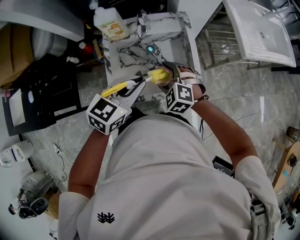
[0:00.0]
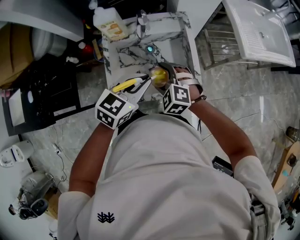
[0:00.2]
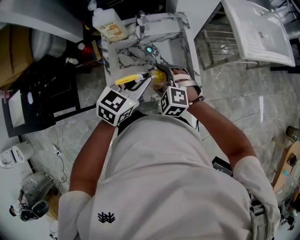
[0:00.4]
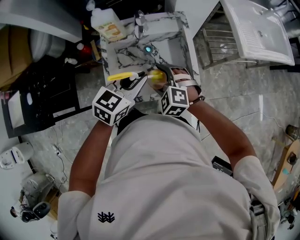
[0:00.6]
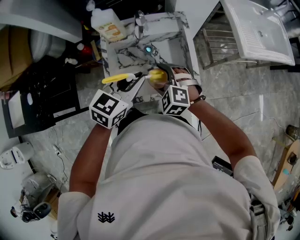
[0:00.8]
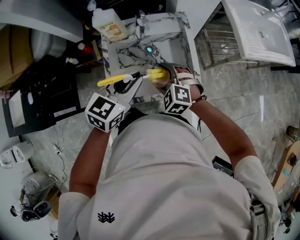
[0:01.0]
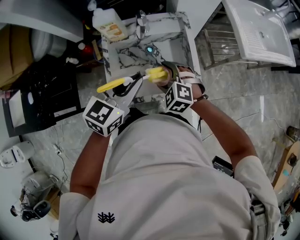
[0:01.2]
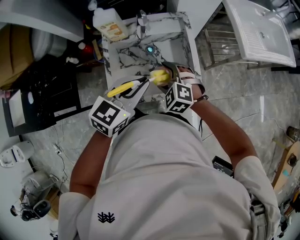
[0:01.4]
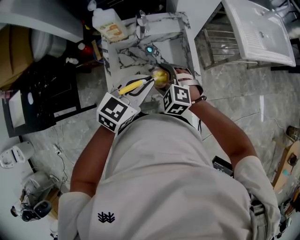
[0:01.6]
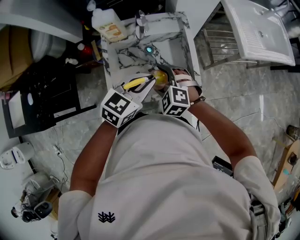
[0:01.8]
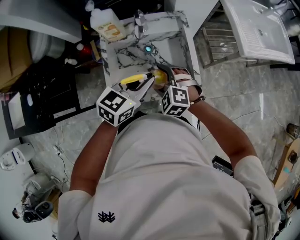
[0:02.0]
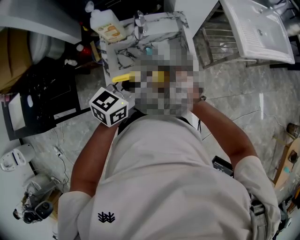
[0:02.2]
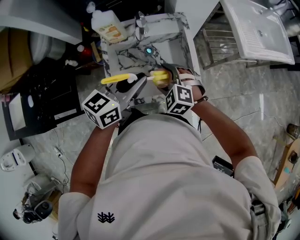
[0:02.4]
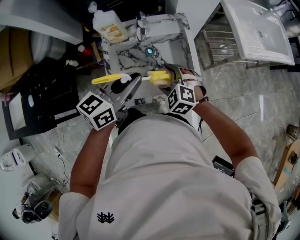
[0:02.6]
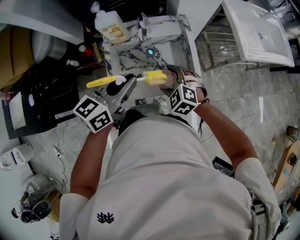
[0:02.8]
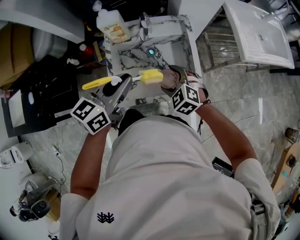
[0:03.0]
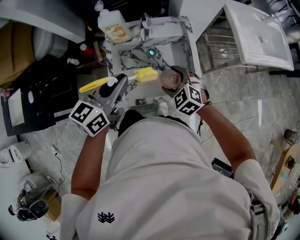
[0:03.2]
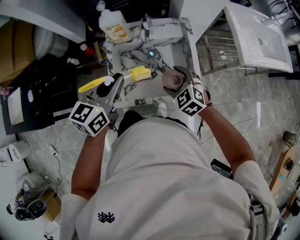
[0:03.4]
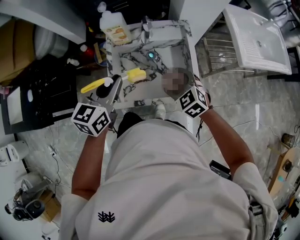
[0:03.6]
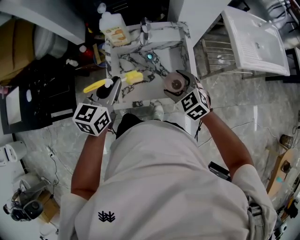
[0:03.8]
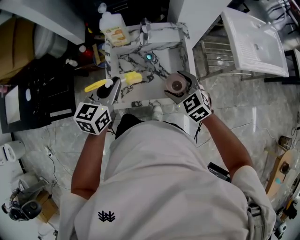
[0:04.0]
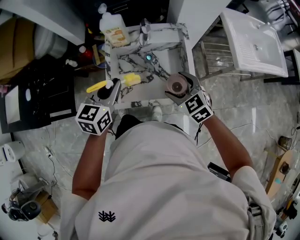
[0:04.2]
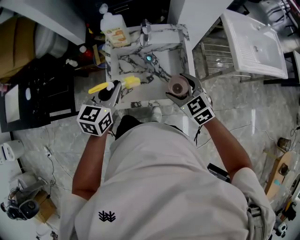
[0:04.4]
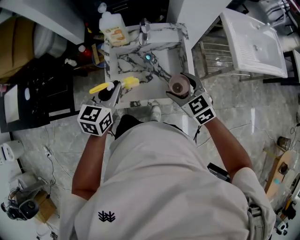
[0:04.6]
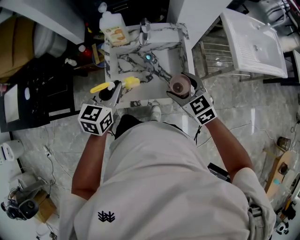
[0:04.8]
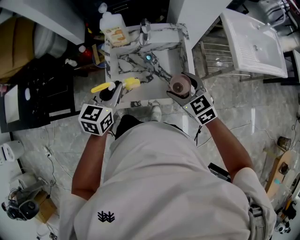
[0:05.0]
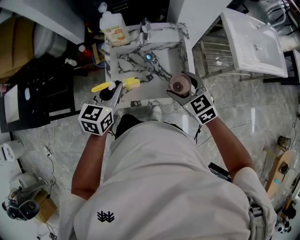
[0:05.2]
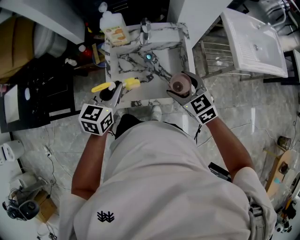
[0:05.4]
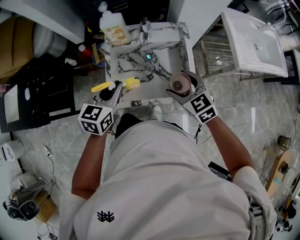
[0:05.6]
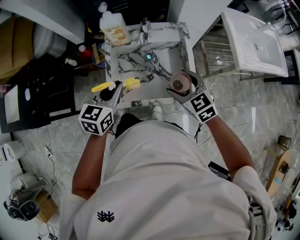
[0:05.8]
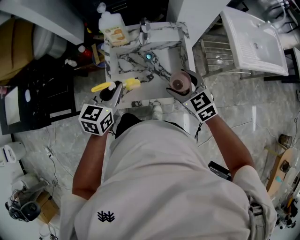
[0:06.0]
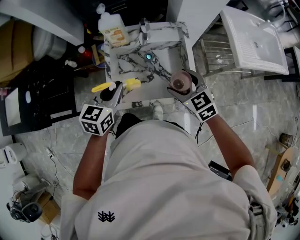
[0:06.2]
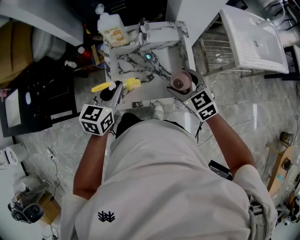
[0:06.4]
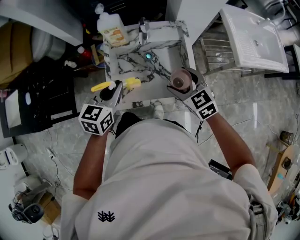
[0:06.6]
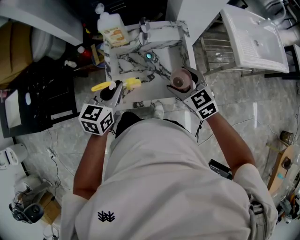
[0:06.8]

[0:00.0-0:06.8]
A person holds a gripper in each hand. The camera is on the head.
0:00.0 to 0:01.4: There are only small adjustments of the grippers.
0:01.4 to 0:02.8: The left gripper shifts about 5 cm to the left, and changes its angle by some 20 degrees.
0:02.8 to 0:04.0: The right gripper changes place by some 5 cm. The left gripper heads to the left, covering approximately 5 cm, and rotates approximately 20 degrees.
0:04.0 to 0:06.8: The grippers stay close to where they were, moving slightly.

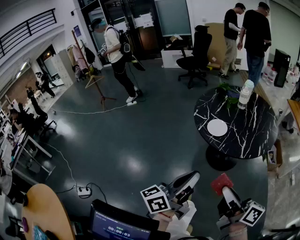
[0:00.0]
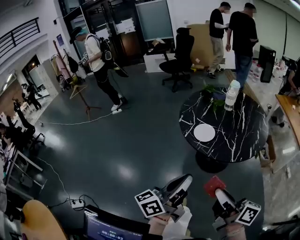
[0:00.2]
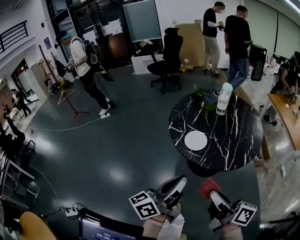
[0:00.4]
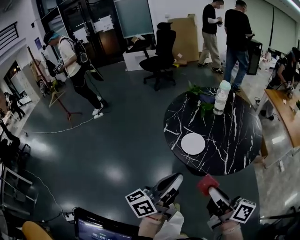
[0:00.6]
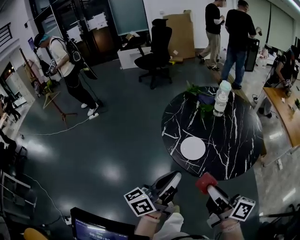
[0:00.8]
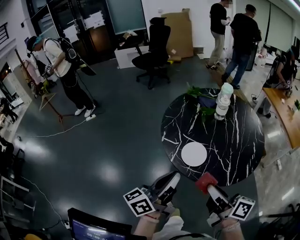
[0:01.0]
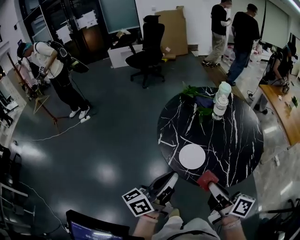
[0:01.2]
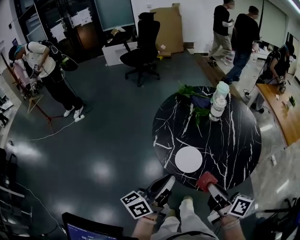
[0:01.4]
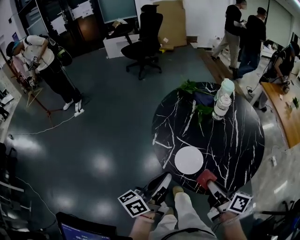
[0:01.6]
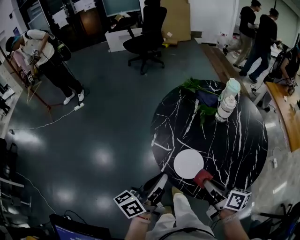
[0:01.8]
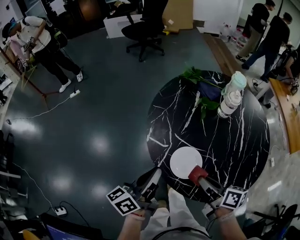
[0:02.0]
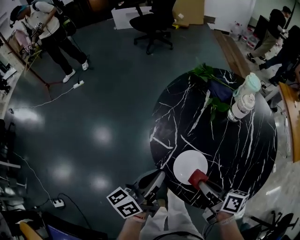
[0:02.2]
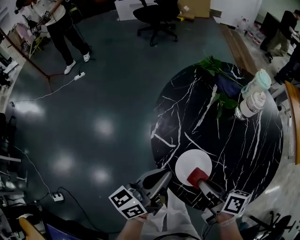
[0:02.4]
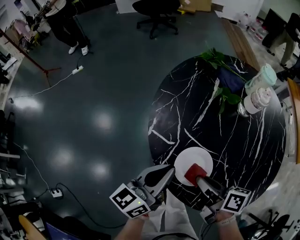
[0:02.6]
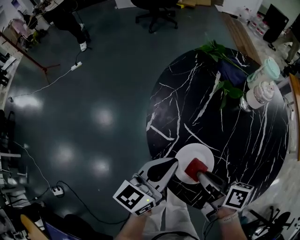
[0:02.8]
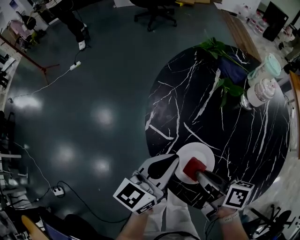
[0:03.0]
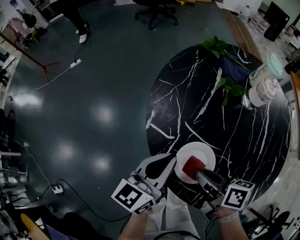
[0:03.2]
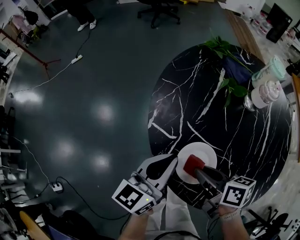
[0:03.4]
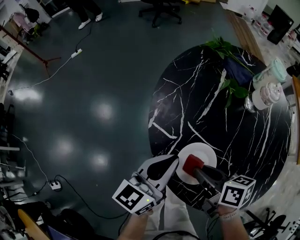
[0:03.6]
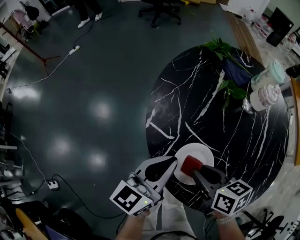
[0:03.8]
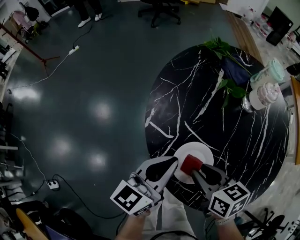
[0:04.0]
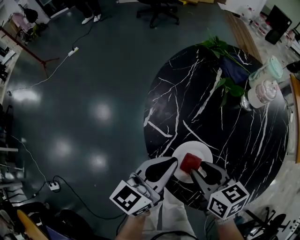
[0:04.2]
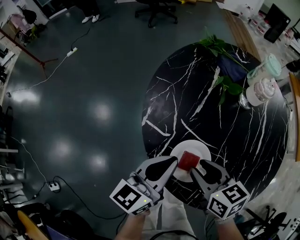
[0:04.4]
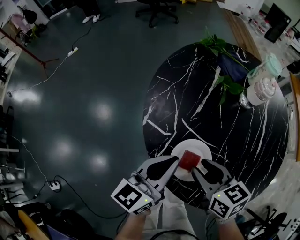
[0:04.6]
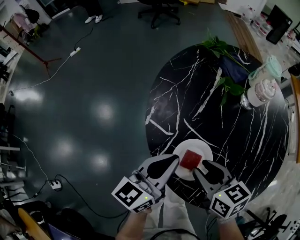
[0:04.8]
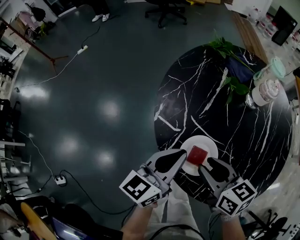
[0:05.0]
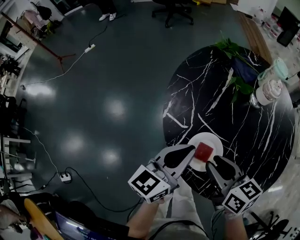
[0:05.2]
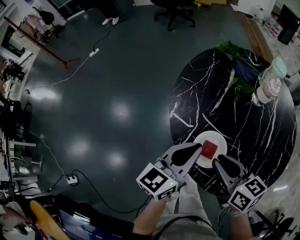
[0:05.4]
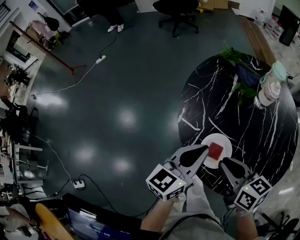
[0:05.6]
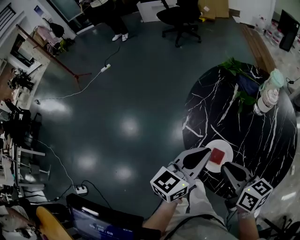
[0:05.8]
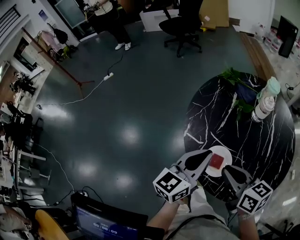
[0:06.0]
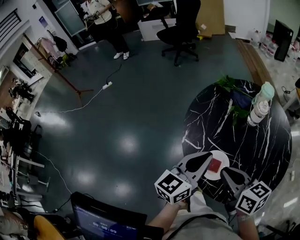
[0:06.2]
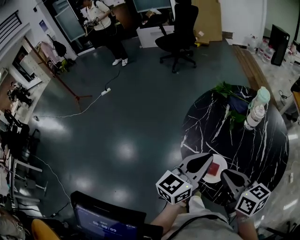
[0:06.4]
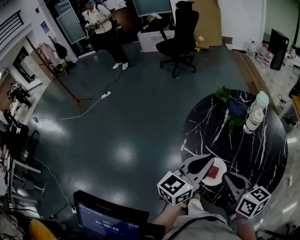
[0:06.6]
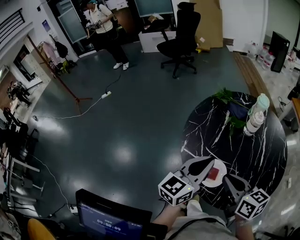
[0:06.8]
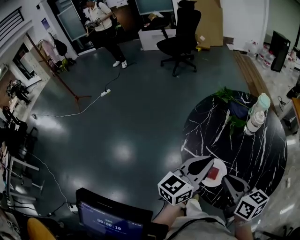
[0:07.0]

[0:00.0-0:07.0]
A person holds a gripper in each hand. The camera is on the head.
0:00.0 to 0:01.4: Both grippers travel together forward, approximately 35 cm. The right gripper changes its angle by about 20 degrees.
0:01.4 to 0:02.8: The two grippers go about 20 cm downward and forward. The left gripper changes its angle by about 30 degrees. The right gripper turns by roughly 30 degrees.
0:02.8 to 0:04.2: The right gripper turns by approximately 40 degrees.
0:04.2 to 0:05.6: Both grippers travel together upward, roughly 10 cm.
0:05.6 to 0:07.0: The grippers both shift upward by roughly 5 cm.

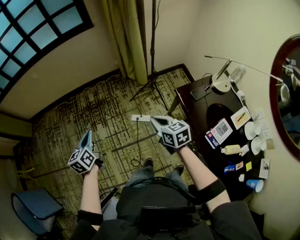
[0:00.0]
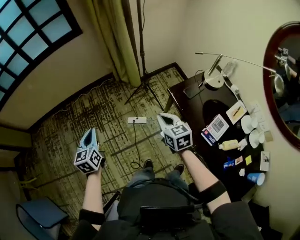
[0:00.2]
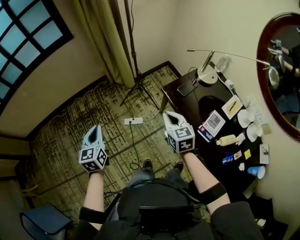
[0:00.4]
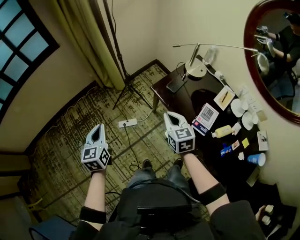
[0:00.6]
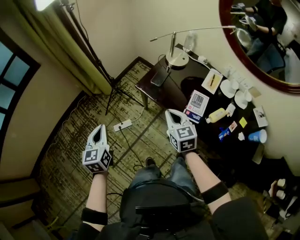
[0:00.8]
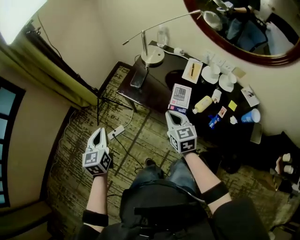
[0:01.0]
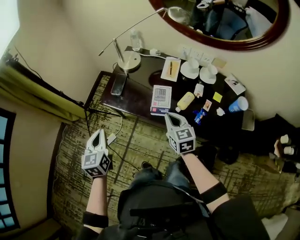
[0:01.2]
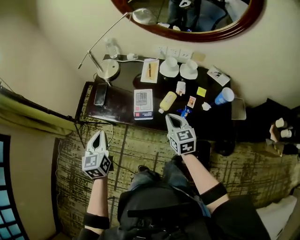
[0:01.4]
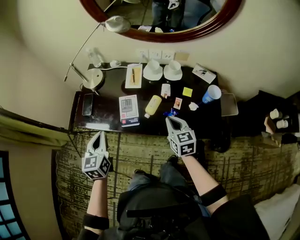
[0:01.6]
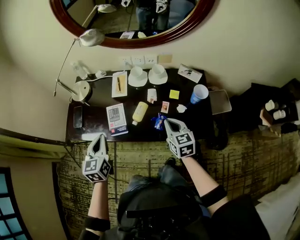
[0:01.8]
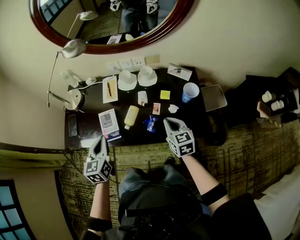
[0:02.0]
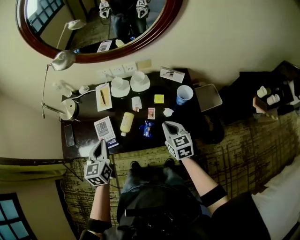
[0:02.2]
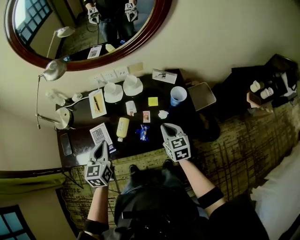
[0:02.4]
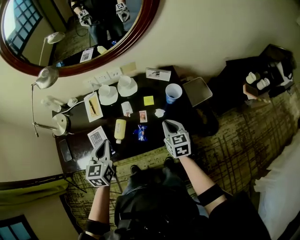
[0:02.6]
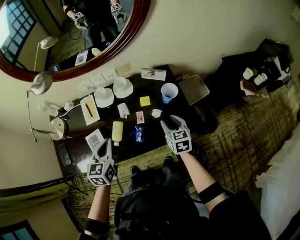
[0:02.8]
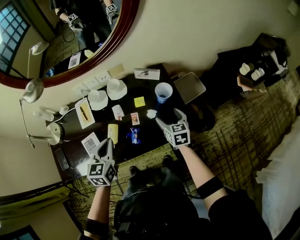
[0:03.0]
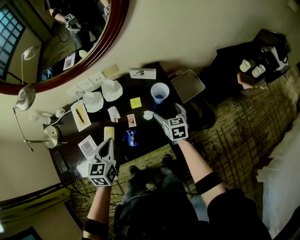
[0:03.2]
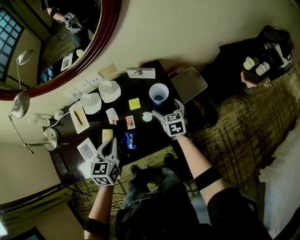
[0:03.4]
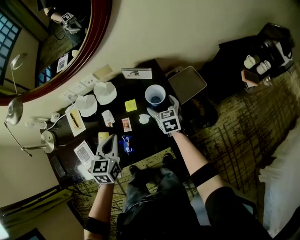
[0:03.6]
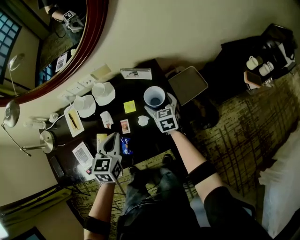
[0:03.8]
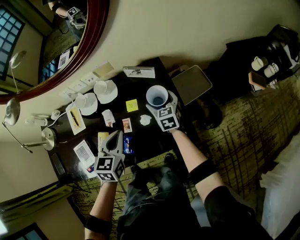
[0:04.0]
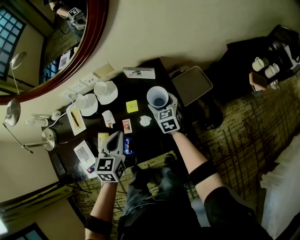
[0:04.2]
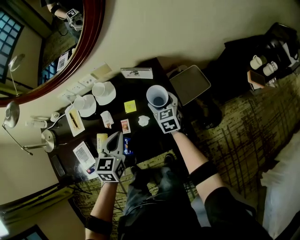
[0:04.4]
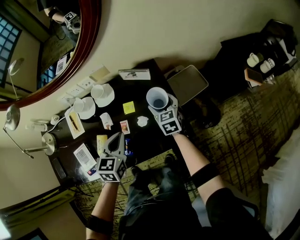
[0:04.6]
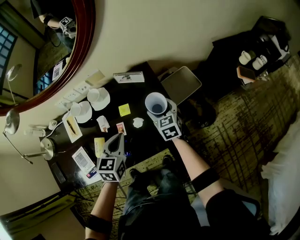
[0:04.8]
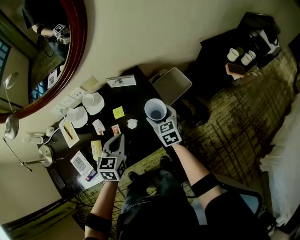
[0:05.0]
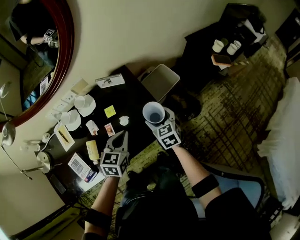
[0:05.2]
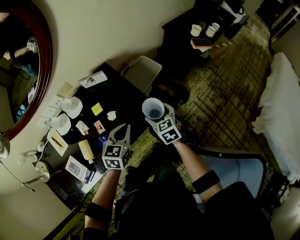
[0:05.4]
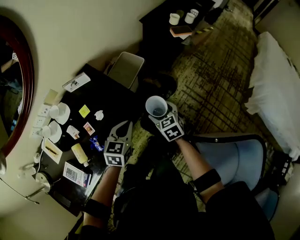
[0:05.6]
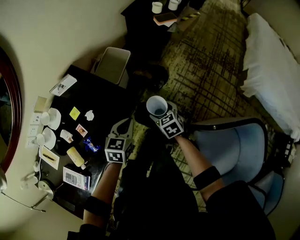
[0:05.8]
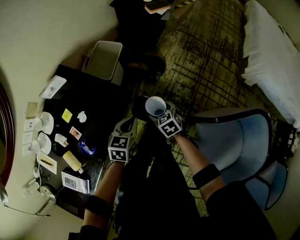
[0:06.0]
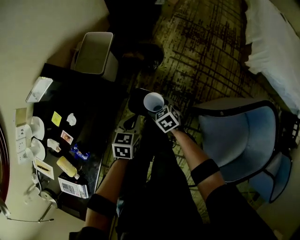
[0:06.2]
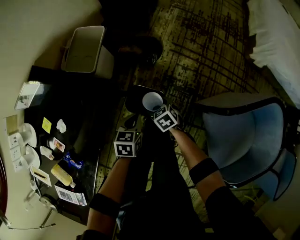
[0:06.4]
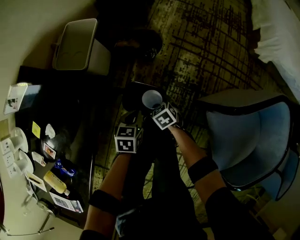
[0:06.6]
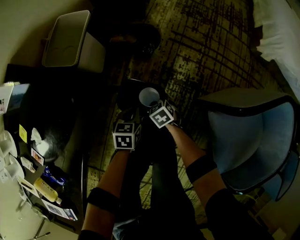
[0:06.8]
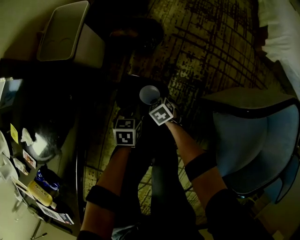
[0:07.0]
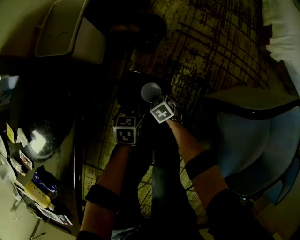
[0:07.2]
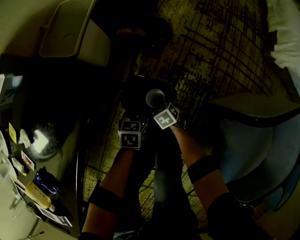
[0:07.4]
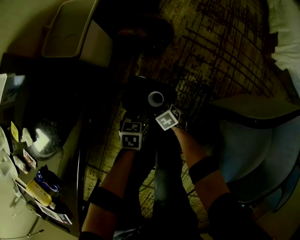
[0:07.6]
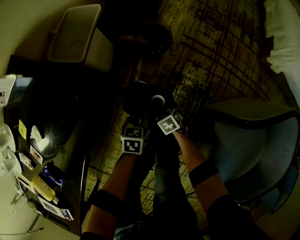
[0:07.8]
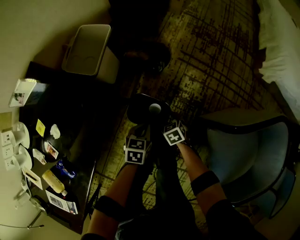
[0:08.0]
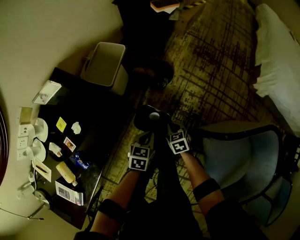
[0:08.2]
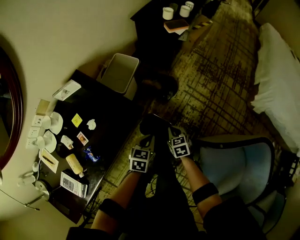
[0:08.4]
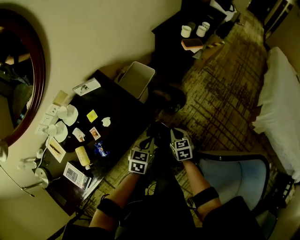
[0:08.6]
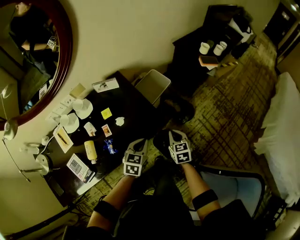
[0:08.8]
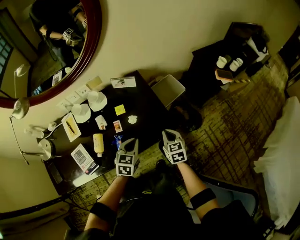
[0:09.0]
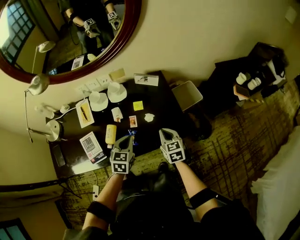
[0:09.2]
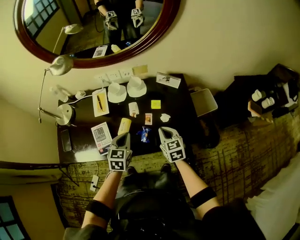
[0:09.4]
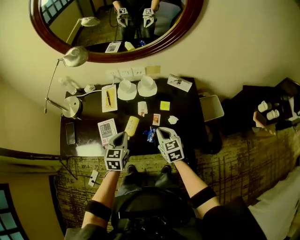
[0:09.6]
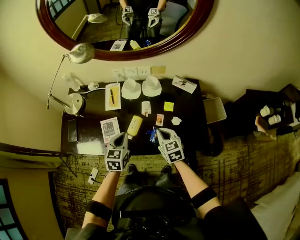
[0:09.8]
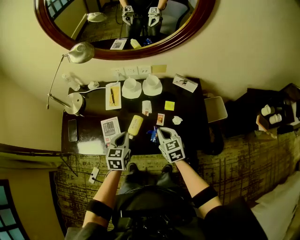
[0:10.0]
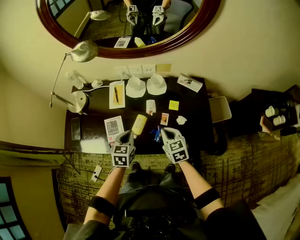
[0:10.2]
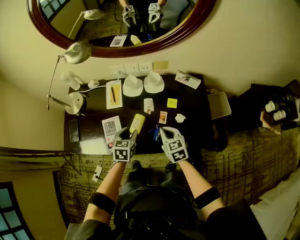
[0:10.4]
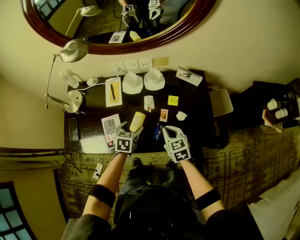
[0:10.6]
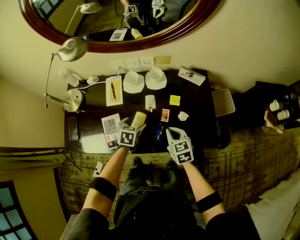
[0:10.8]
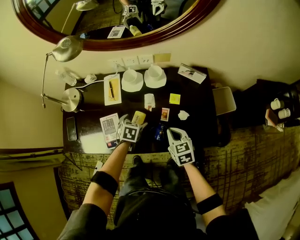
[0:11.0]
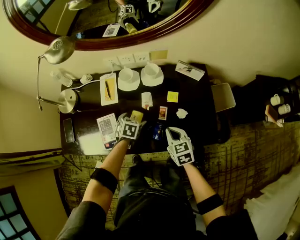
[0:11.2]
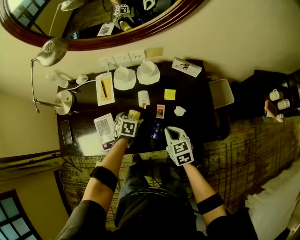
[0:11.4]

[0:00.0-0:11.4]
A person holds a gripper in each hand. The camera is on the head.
0:00.0 to 0:01.4: The pair of grippers is taken approximately 50 cm. The left gripper turns by approximately 70 degrees. Meanwhile the right gripper rotates roughly 70 degrees.
0:01.4 to 0:02.8: The left gripper changes place by approximately 35 cm, and turns by approximately 40 degrees; the right gripper ends up approximately 30 cm from where it was, turns by roughly 30 degrees, and opens.
0:02.8 to 0:04.2: The right gripper is displaced forward and downward by about 20 cm, and opens up. Meanwhile the left gripper heads to the right, forward and downward, covering about 20 cm.
0:04.2 to 0:05.6: The right gripper ends up approximately 35 cm from where it was, and turns by approximately 30 degrees. The left gripper changes place by some 25 cm, and turns by approximately 40 degrees.
0:05.6 to 0:07.2: The two grippers go roughly 50 cm downward. The left gripper turns by approximately 30 degrees; the right gripper rotates approximately 30 degrees.
0:07.2 to 0:08.6: The grippers both shift upward by approximately 50 cm. The right gripper rotates about 20 degrees, and closes its fingers. Meanwhile the left gripper turns by about 20 degrees.
0:08.6 to 0:10.0: Both grippers are carried about 50 cm. The left gripper rotates roughly 60 degrees. Meanwhile the right gripper rotates roughly 60 degrees.
0:10.0 to 0:11.4: The right gripper shifts some 5 cm downward; the left gripper is displaced downward and forward by some 20 cm, changes its angle by approximately 30 degrees, and opens up.
